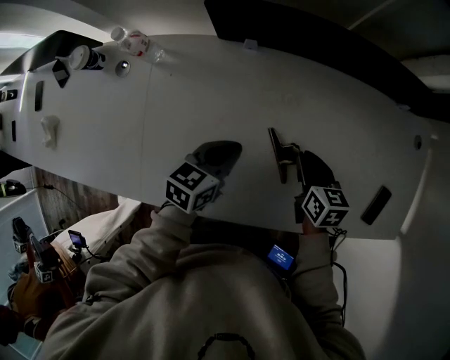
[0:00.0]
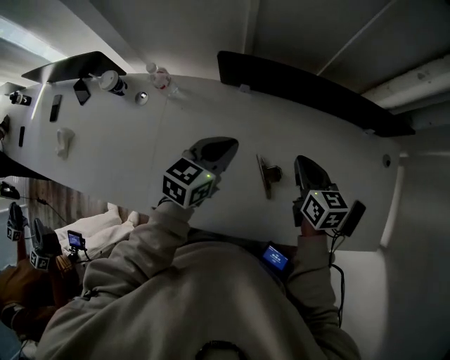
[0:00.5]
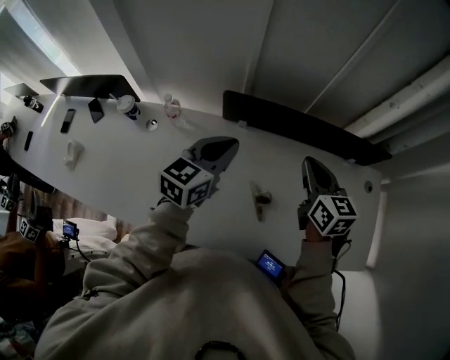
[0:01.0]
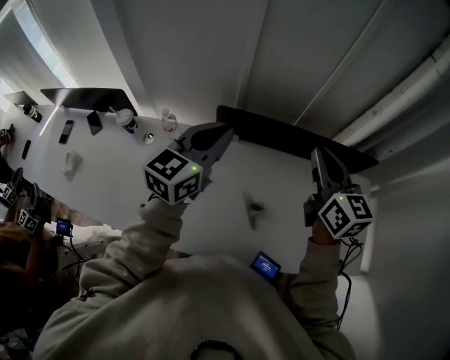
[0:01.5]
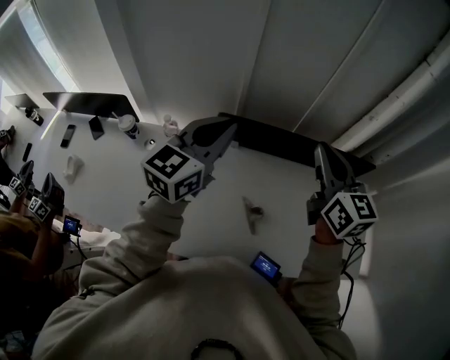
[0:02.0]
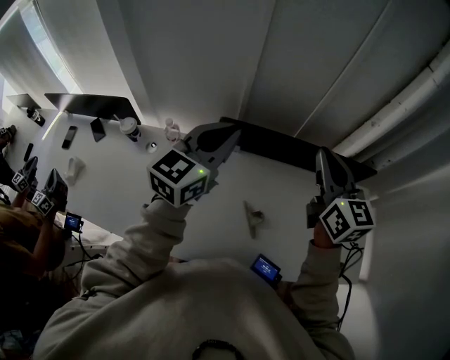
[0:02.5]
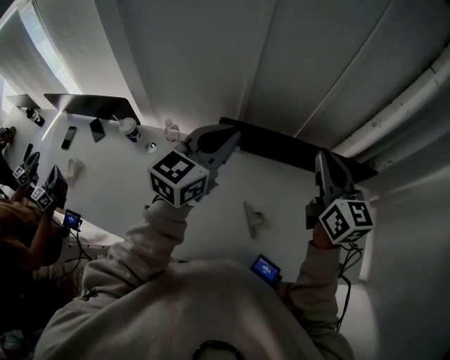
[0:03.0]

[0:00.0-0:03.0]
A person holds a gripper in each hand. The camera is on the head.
0:00.0 to 0:01.5: Both grippers travel together upward, about 40 cm. The right gripper angles its fingers upward, by approximately 40 degrees, while the left gripper angles its fingers upward, by roughly 30 degrees.
0:01.5 to 0:03.0: The right gripper heads upward and backward, covering about 10 cm. Meanwhile the left gripper moves upward, about 5 cm.

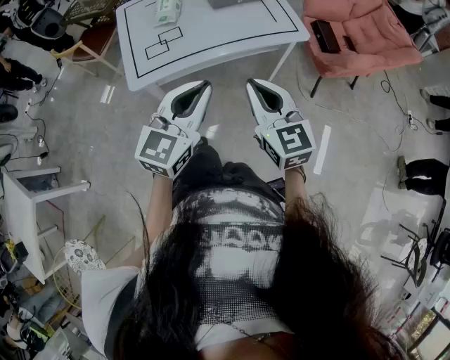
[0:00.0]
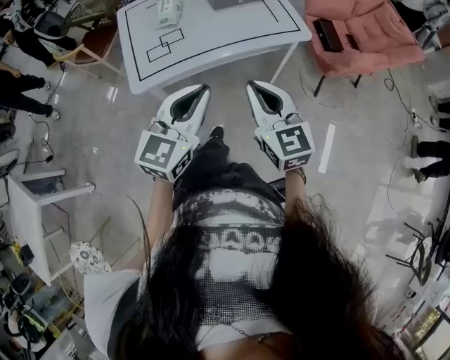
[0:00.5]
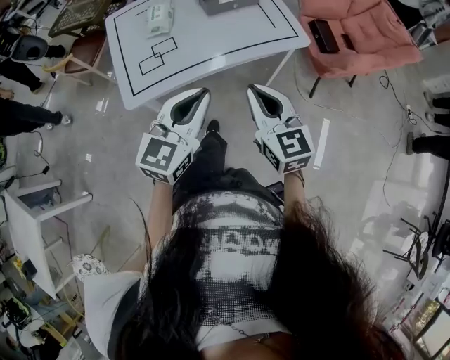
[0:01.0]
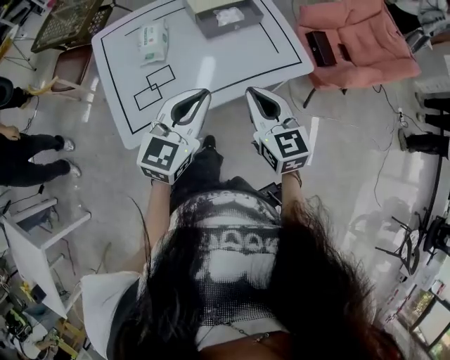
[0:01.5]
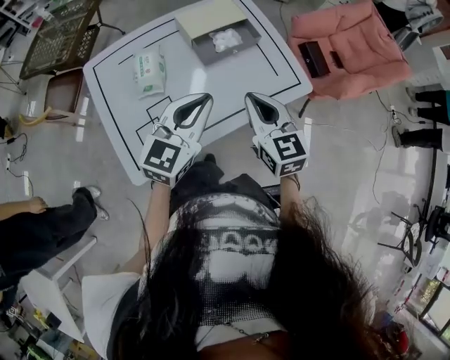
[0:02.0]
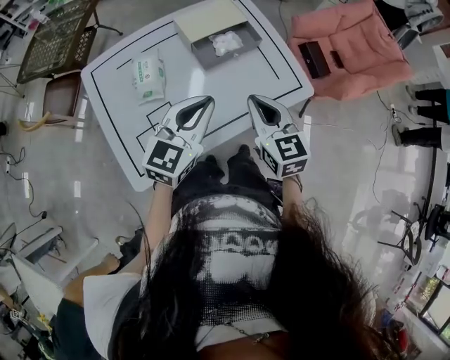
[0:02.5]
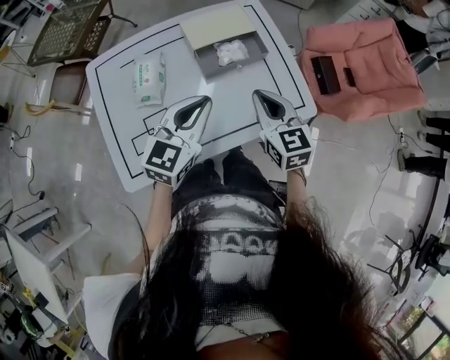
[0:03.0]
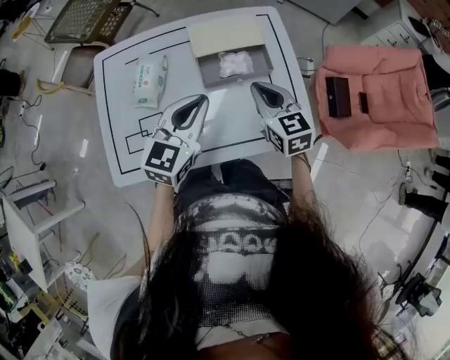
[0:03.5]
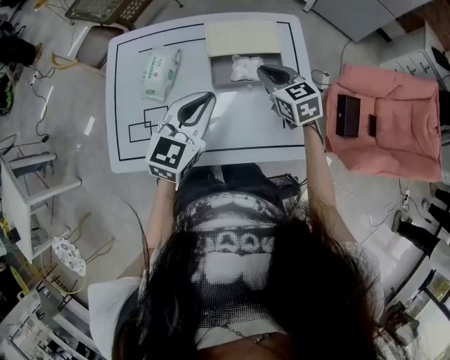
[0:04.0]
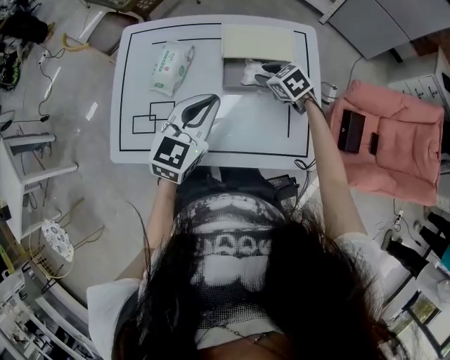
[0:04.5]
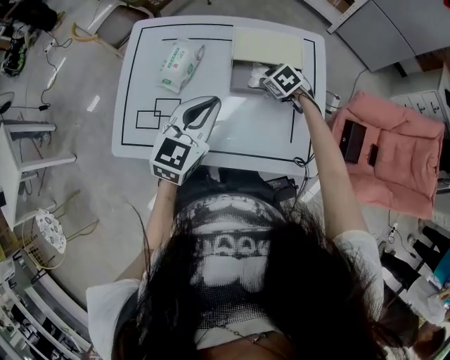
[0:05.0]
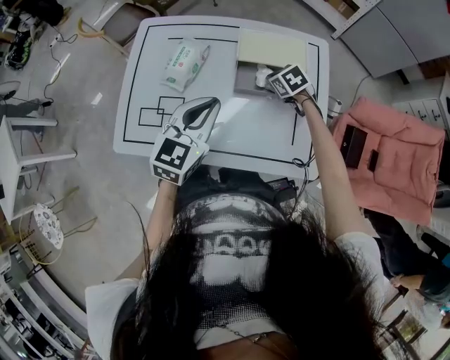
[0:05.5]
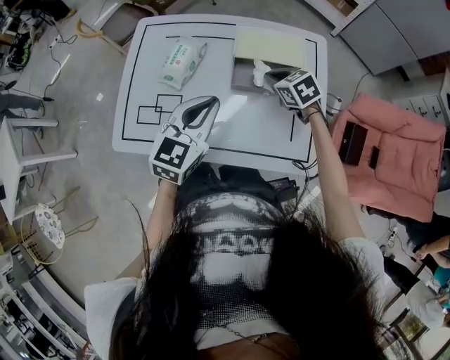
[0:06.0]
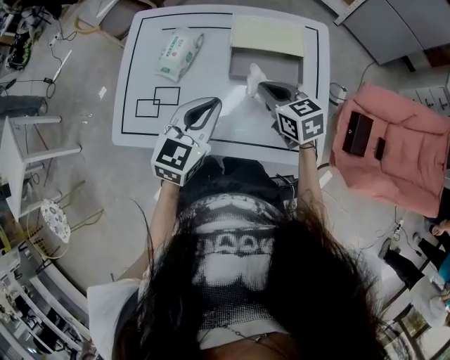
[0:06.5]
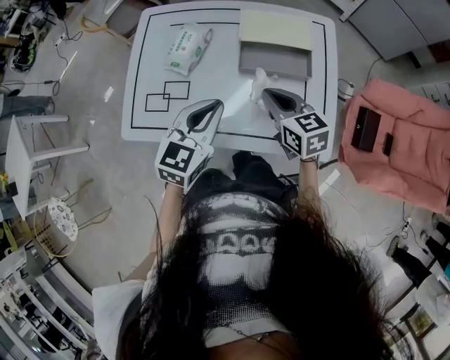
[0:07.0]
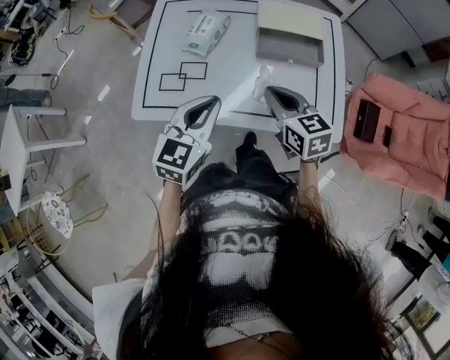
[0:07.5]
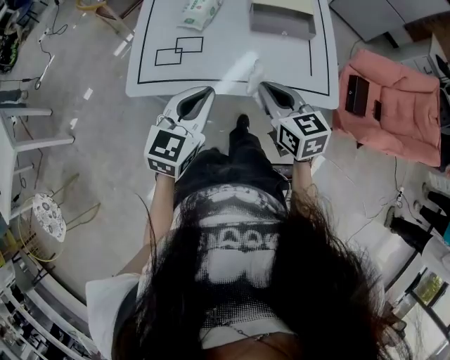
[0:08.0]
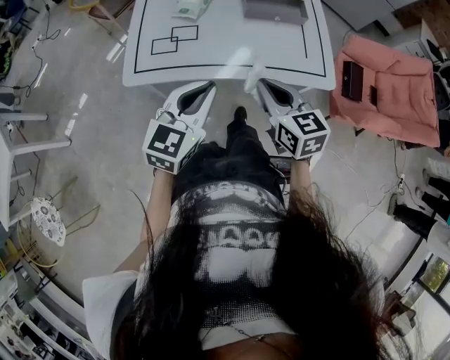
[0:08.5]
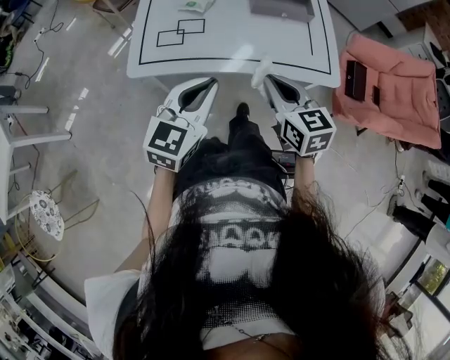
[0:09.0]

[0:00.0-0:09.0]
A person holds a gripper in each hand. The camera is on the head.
0:00.0 to 0:02.0: Both grippers travel together forward, approximately 30 cm.
0:02.0 to 0:04.5: The left gripper shifts by about 15 cm, and swivels approximately 30 degrees, while the right gripper ends up approximately 35 cm from where it was, tips its fingers downward by approximately 30 degrees, and opens its fingers.
0:04.5 to 0:07.0: The right gripper moves backward, upward and to the left, roughly 15 cm, rotates approximately 30 degrees, and closes its fingers, while the left gripper is displaced backward by about 5 cm.
0:07.0 to 0:09.0: The right gripper goes approximately 25 cm backward; the left gripper travels backward and to the left by about 25 cm.

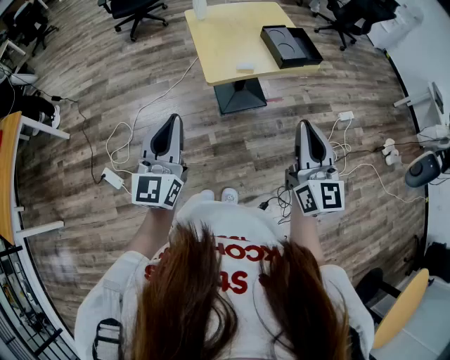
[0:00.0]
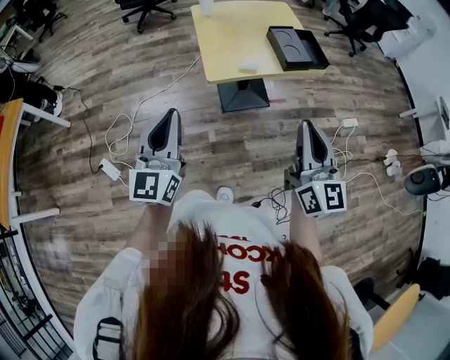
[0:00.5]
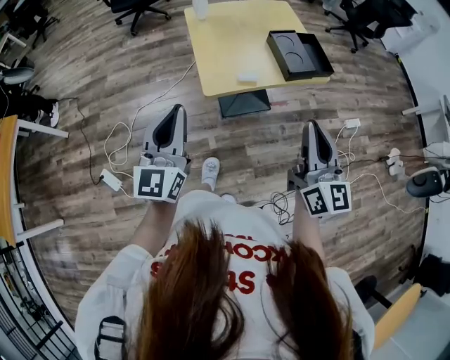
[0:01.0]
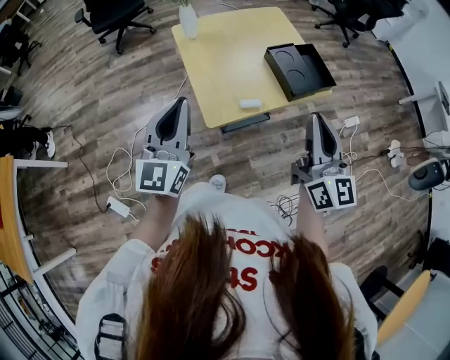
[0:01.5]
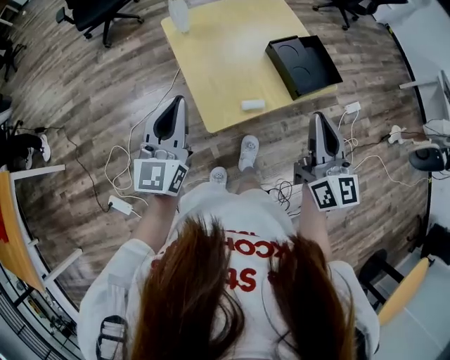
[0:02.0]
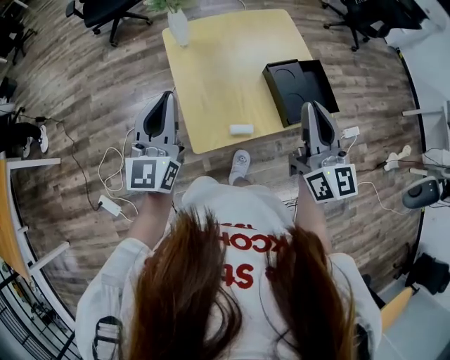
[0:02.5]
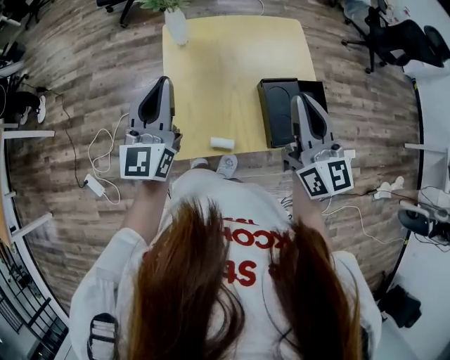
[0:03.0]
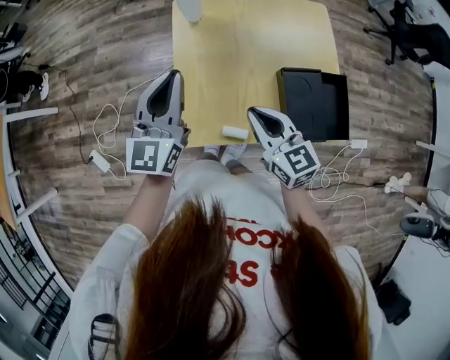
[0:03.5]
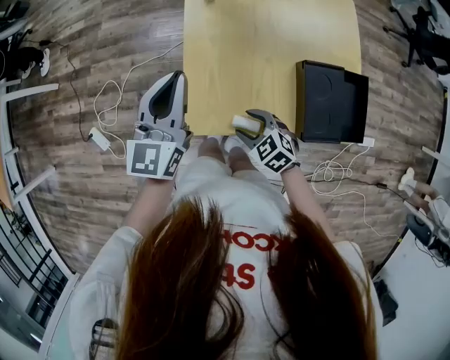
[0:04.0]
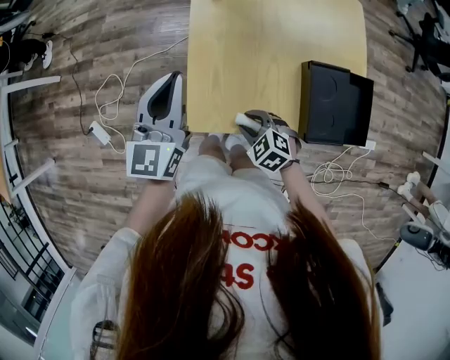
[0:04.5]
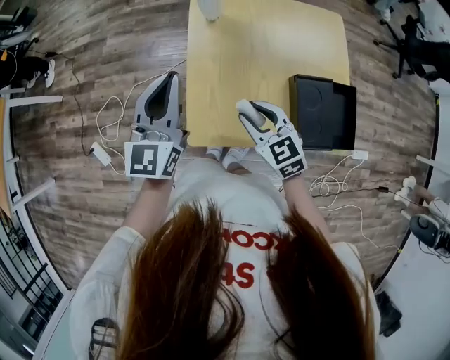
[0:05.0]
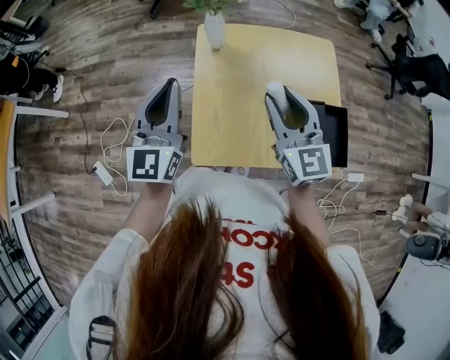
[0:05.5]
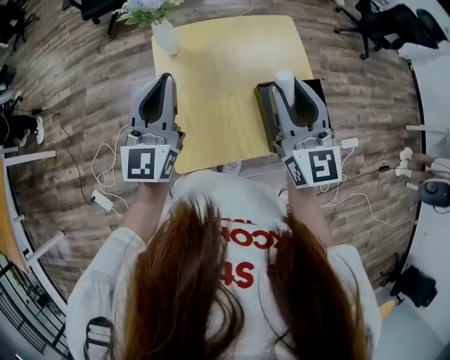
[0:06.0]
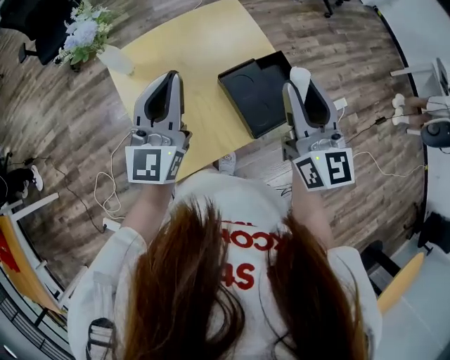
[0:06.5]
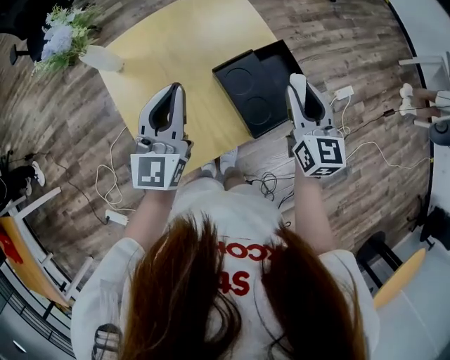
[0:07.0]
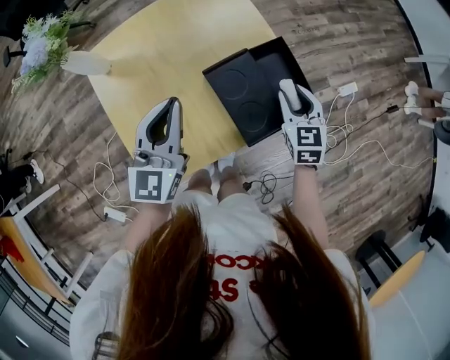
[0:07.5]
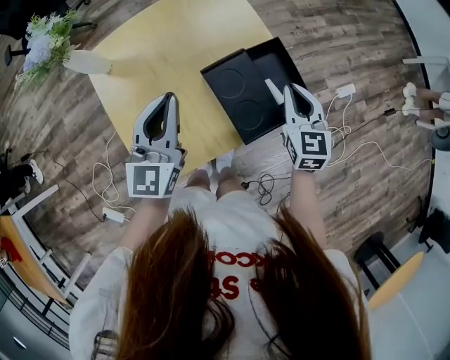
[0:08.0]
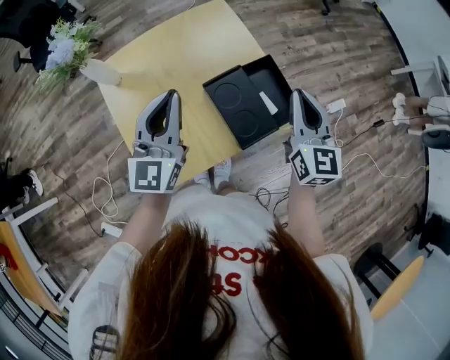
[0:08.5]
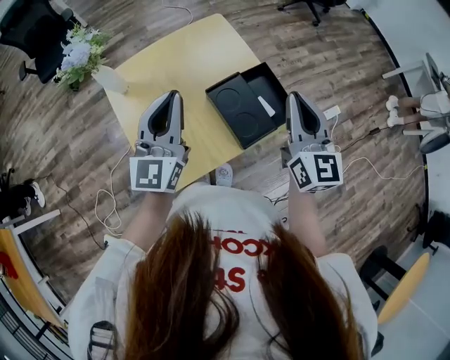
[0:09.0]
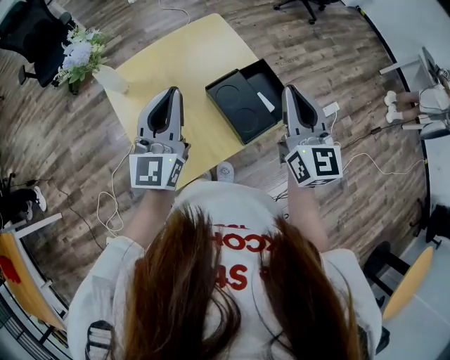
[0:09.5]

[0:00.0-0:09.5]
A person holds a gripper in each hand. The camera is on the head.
0:00.0 to 0:02.0: Both grippers move forward, some 30 cm.
0:02.0 to 0:04.0: The left gripper shifts by some 15 cm, and rotates some 20 degrees, while the right gripper heads downward, covering approximately 30 cm, tilts its fingers some 50 degrees downward, and opens up.
0:04.0 to 0:05.5: The right gripper is displaced upward and forward by approximately 30 cm, tips its fingers upward by roughly 40 degrees, and closes up, while the left gripper goes approximately 10 cm upward.
0:05.5 to 0:07.5: The left gripper changes place by approximately 25 cm, and swivels some 30 degrees. Meanwhile the right gripper changes place by approximately 35 cm, and tilts its fingers about 30 degrees downward.
0:07.5 to 0:09.5: The left gripper goes approximately 10 cm upward; the right gripper shifts approximately 25 cm upward, points its fingers some 30 degrees further upward, and closes.

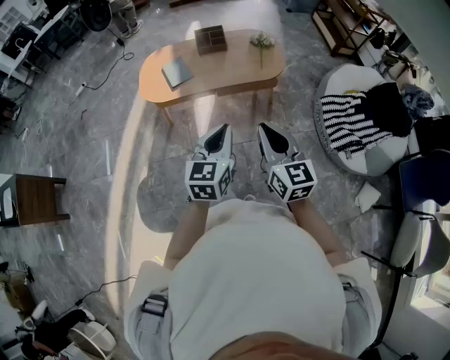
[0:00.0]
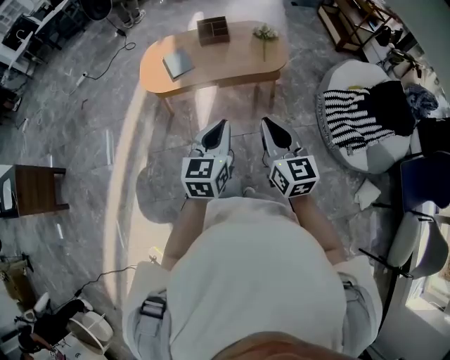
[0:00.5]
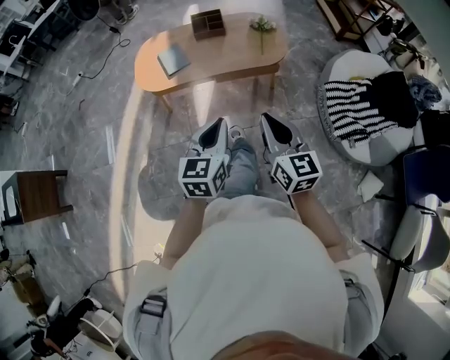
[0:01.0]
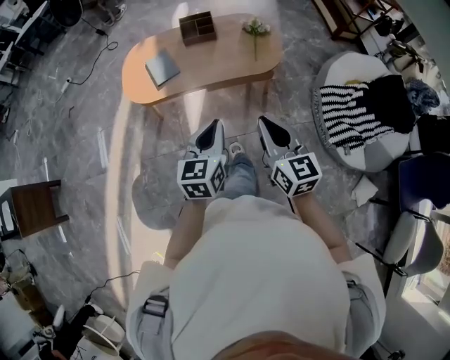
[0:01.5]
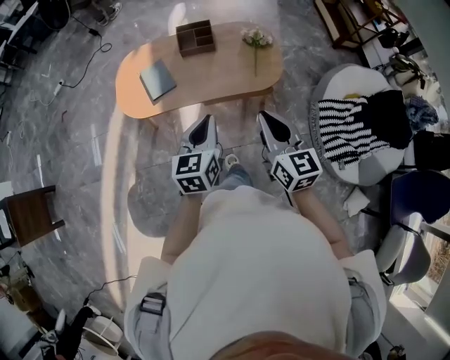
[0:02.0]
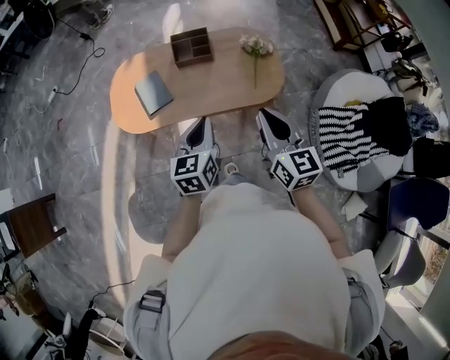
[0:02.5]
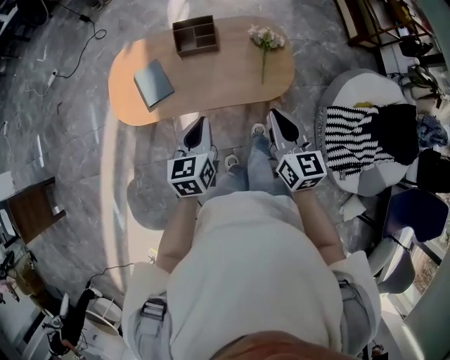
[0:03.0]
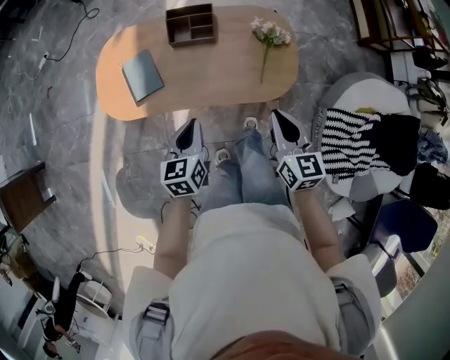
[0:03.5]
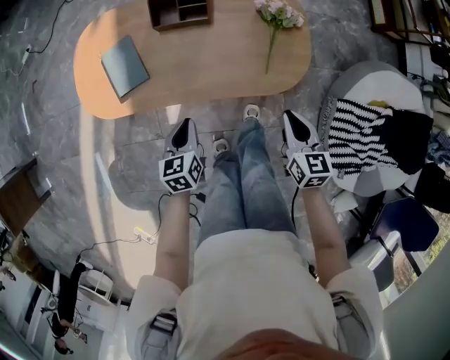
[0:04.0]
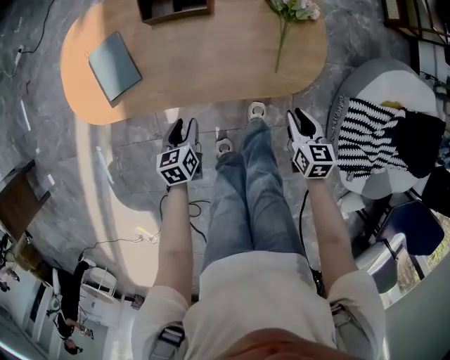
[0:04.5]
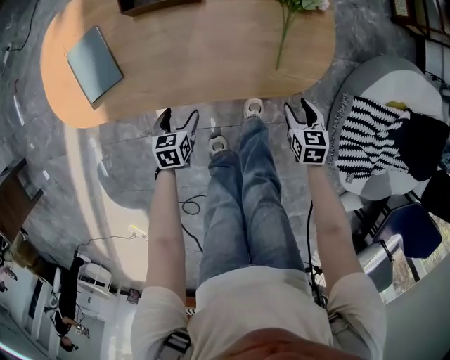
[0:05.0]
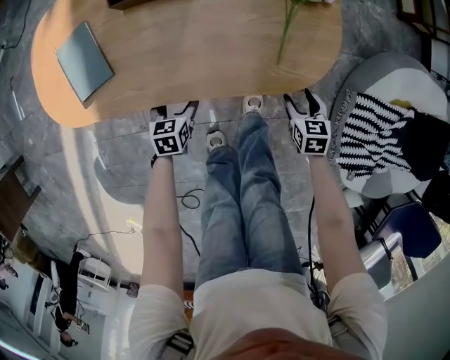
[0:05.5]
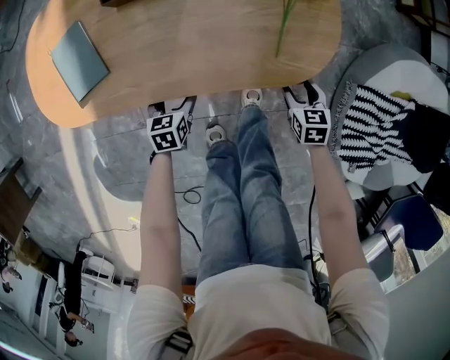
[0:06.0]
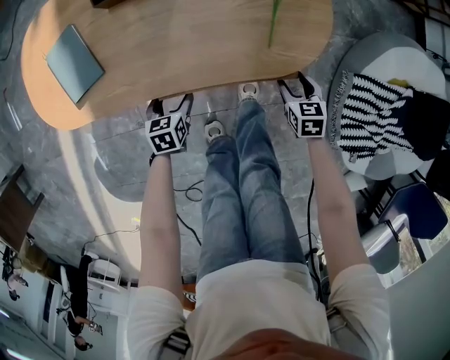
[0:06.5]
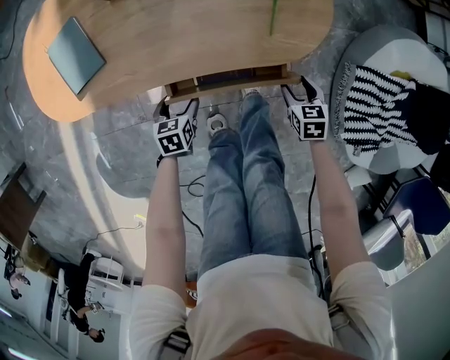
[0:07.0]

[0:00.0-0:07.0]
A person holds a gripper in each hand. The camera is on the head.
0:00.0 to 0:02.0: The grippers both shift forward by roughly 25 cm.
0:02.0 to 0:03.5: The two grippers go some 25 cm forward and downward.
0:03.5 to 0:05.0: Both grippers move downward, approximately 40 cm. The right gripper tilts its fingers some 30 degrees downward, and opens up, while the left gripper changes its angle by approximately 20 degrees, and opens up.
0:05.0 to 0:07.0: The right gripper ends up about 5 cm from where it was.
